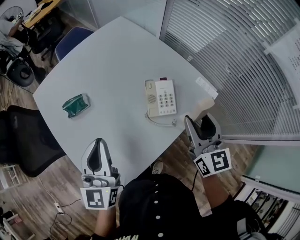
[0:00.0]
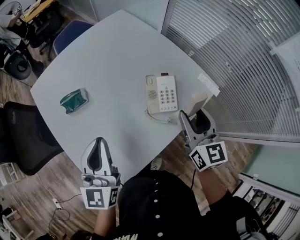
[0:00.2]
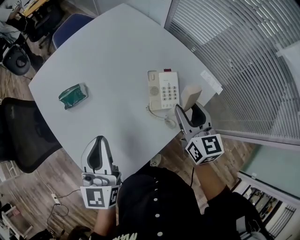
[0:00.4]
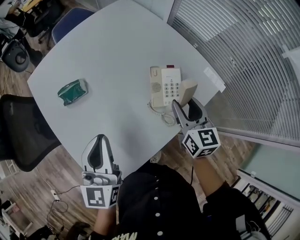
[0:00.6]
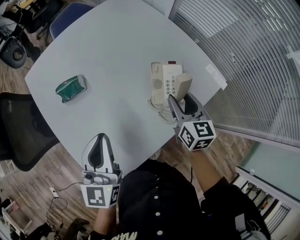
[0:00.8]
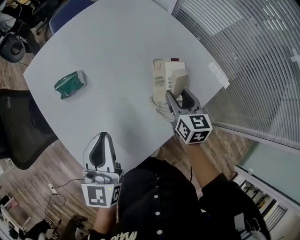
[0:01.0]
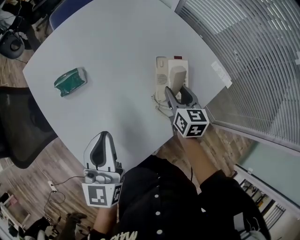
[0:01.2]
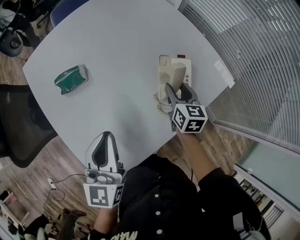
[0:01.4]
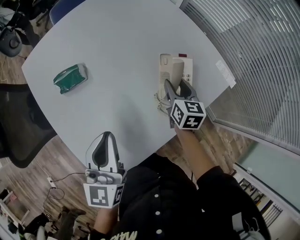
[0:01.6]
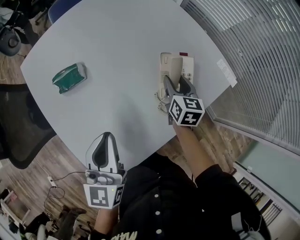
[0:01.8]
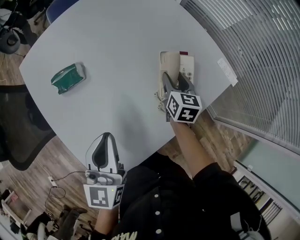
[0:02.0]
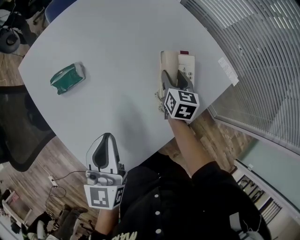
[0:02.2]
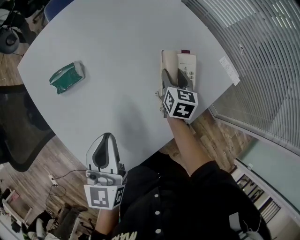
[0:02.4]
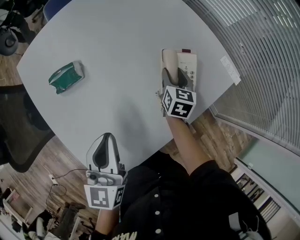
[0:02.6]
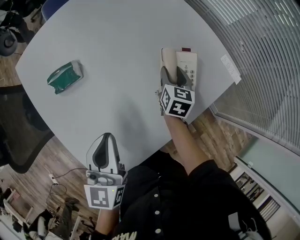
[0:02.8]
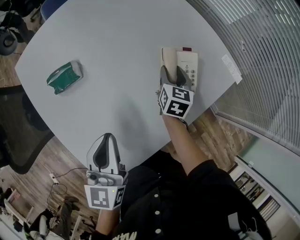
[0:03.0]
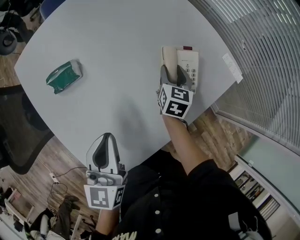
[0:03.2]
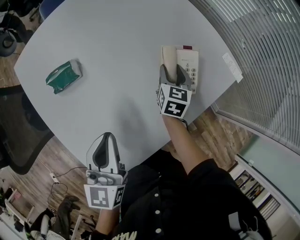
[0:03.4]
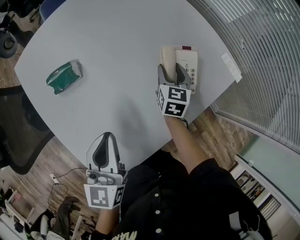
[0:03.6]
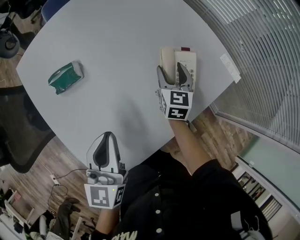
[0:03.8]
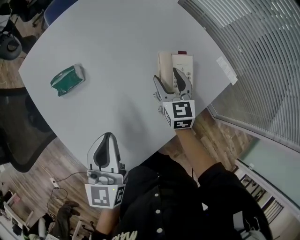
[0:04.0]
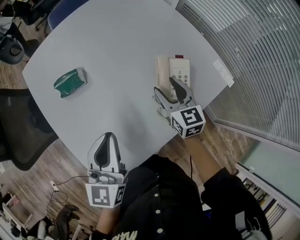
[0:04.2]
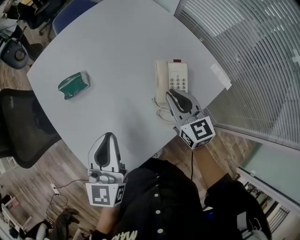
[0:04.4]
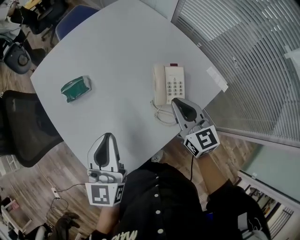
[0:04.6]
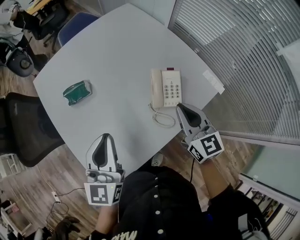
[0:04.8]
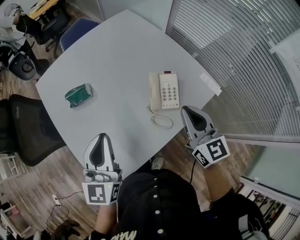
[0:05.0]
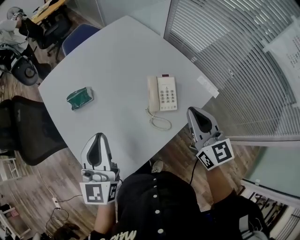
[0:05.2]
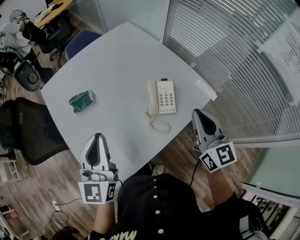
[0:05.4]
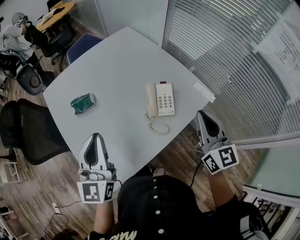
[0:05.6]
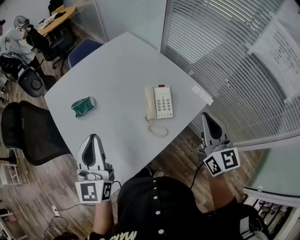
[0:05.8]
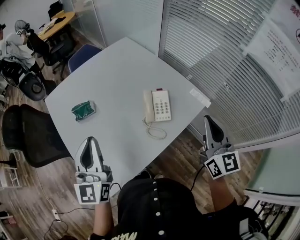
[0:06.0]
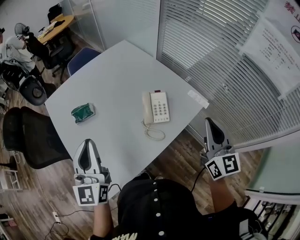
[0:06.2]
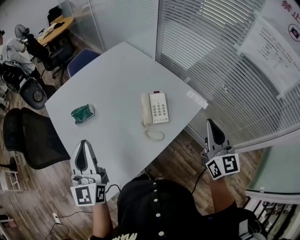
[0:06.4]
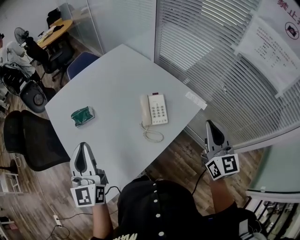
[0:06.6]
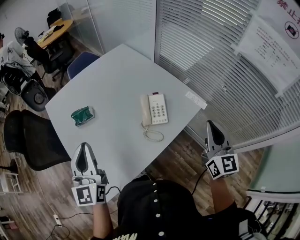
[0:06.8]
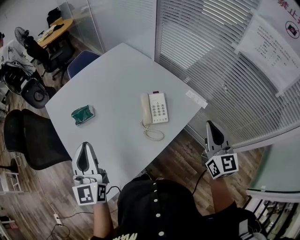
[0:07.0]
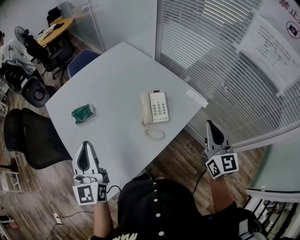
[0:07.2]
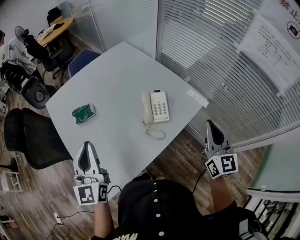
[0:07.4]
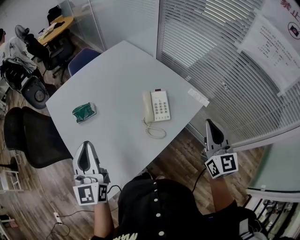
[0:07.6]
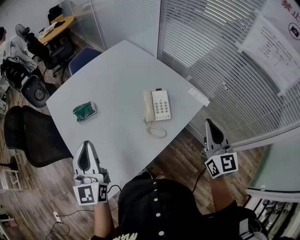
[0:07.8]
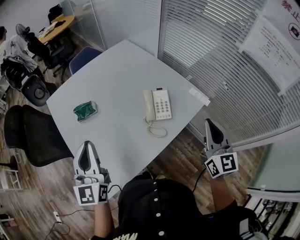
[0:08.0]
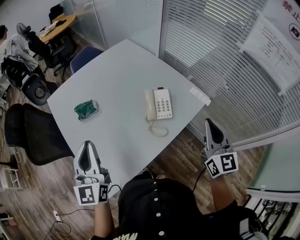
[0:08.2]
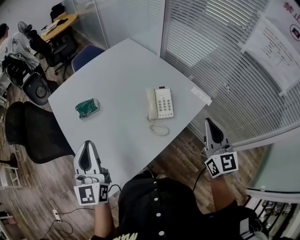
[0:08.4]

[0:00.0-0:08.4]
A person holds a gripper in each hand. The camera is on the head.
0:00.0 to 0:01.4: The right gripper heads downward and forward, covering some 25 cm, and rotates about 30 degrees. The left gripper heads downward, covering roughly 10 cm.
0:01.4 to 0:02.8: The right gripper moves downward and forward, roughly 10 cm.
0:02.8 to 0:04.2: The right gripper goes about 10 cm upward and backward, and turns by approximately 30 degrees.
0:04.2 to 0:05.6: The left gripper heads upward and backward, covering approximately 15 cm. The right gripper is displaced upward, backward and to the right by about 30 cm, turns by about 20 degrees, and closes its fingers.
0:05.6 to 0:07.0: The right gripper is displaced to the right and backward by approximately 10 cm.
0:07.0 to 0:08.4: The grippers move only a little.

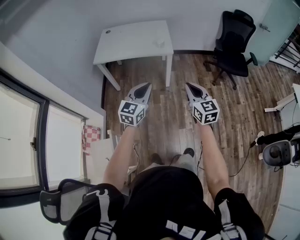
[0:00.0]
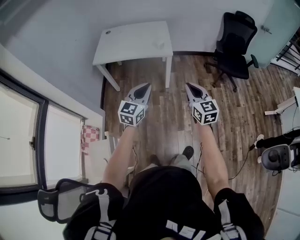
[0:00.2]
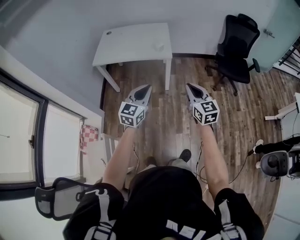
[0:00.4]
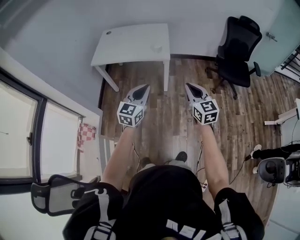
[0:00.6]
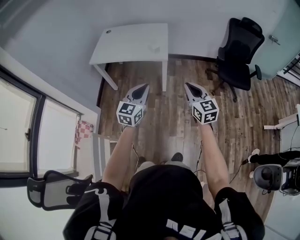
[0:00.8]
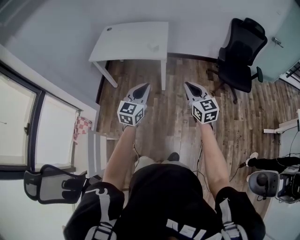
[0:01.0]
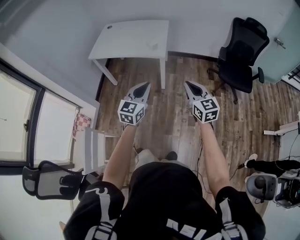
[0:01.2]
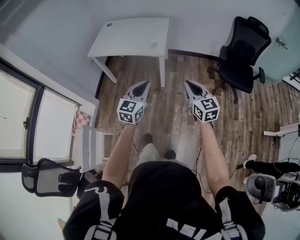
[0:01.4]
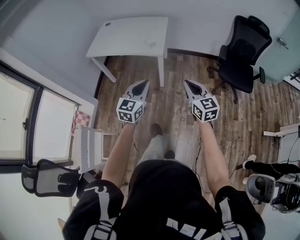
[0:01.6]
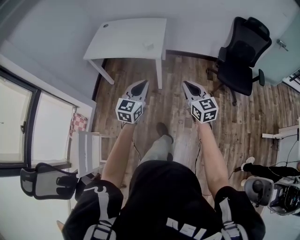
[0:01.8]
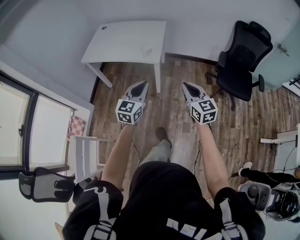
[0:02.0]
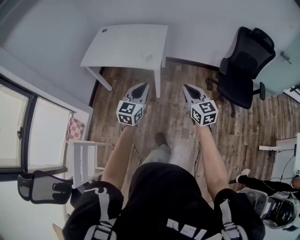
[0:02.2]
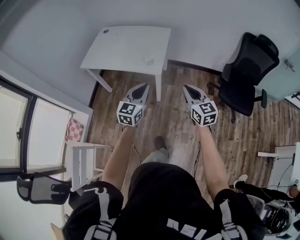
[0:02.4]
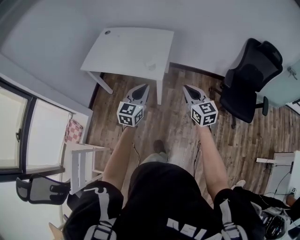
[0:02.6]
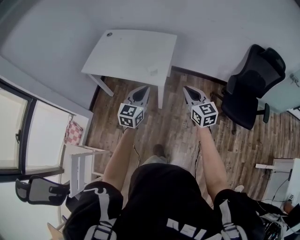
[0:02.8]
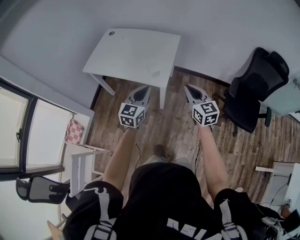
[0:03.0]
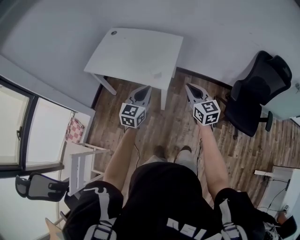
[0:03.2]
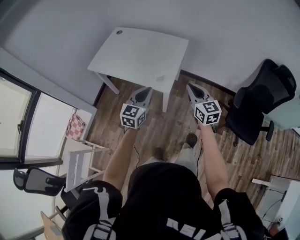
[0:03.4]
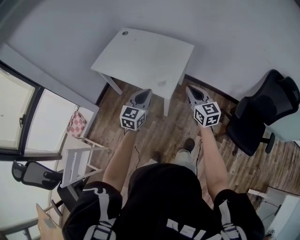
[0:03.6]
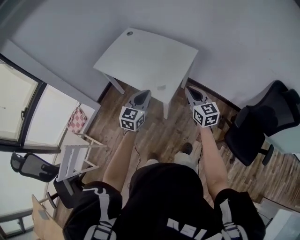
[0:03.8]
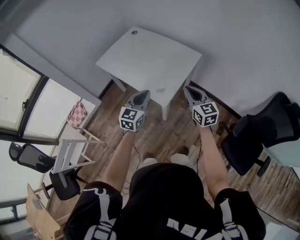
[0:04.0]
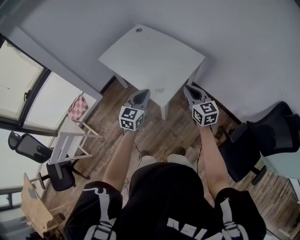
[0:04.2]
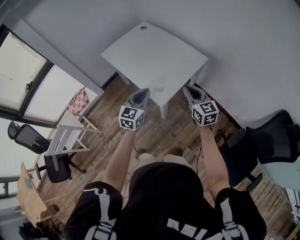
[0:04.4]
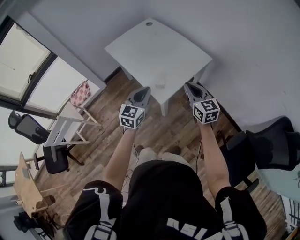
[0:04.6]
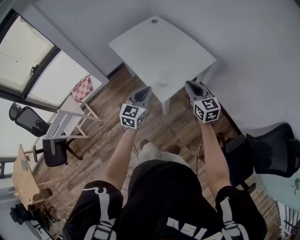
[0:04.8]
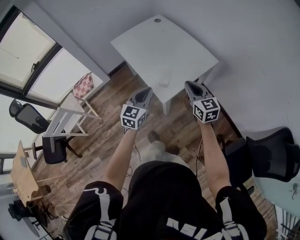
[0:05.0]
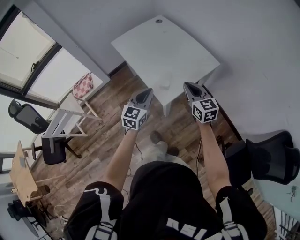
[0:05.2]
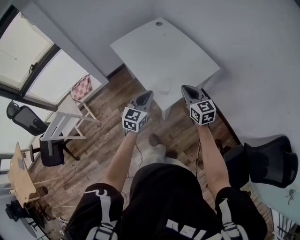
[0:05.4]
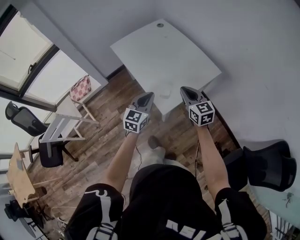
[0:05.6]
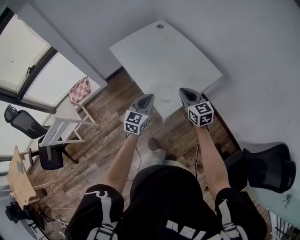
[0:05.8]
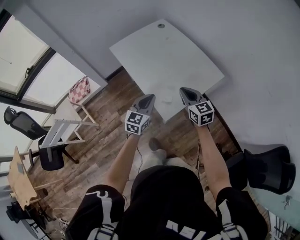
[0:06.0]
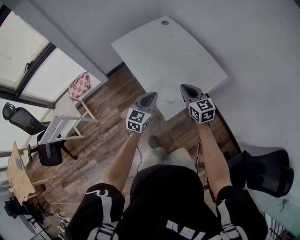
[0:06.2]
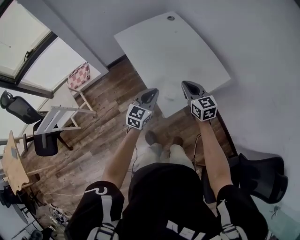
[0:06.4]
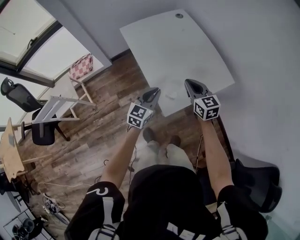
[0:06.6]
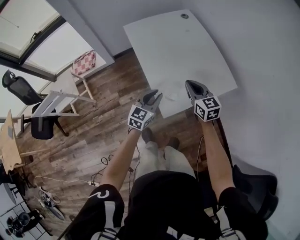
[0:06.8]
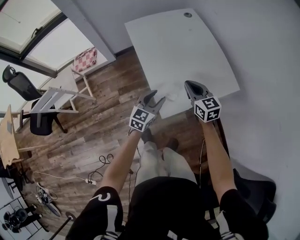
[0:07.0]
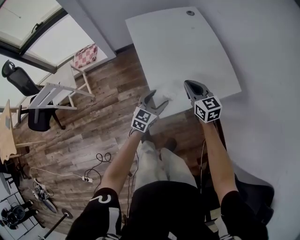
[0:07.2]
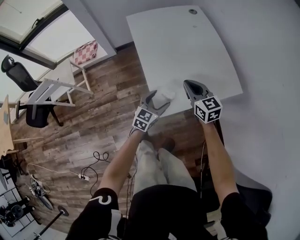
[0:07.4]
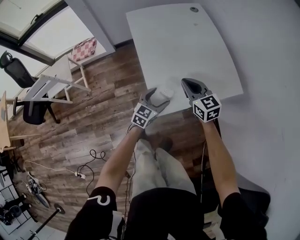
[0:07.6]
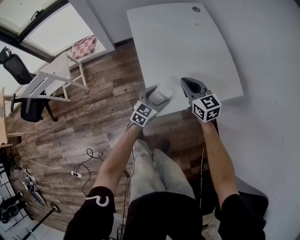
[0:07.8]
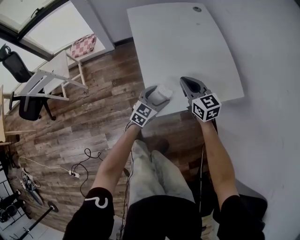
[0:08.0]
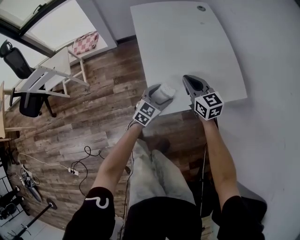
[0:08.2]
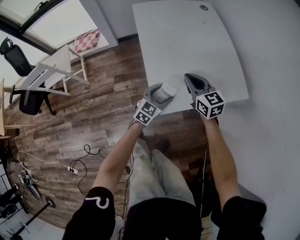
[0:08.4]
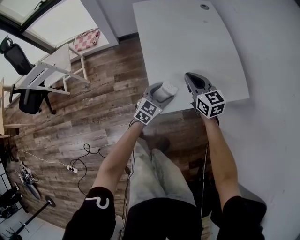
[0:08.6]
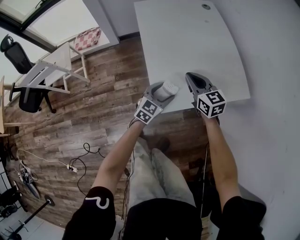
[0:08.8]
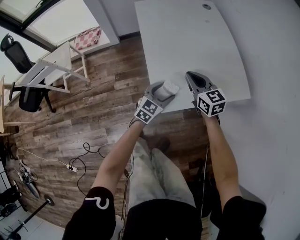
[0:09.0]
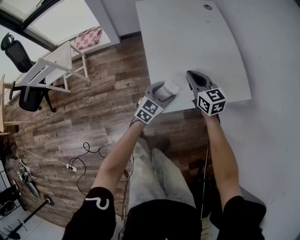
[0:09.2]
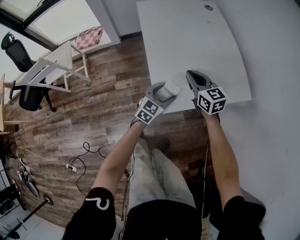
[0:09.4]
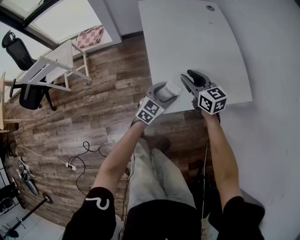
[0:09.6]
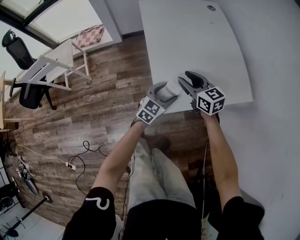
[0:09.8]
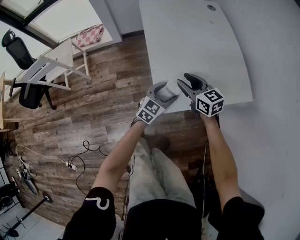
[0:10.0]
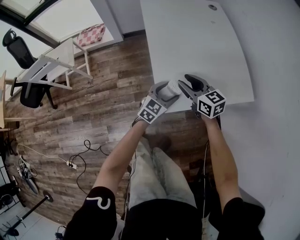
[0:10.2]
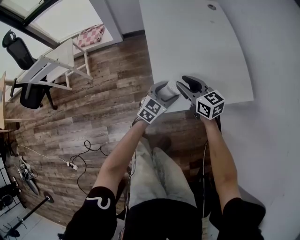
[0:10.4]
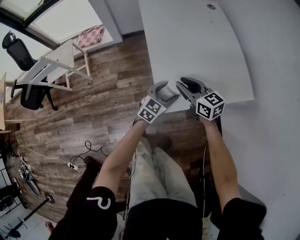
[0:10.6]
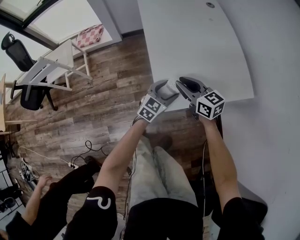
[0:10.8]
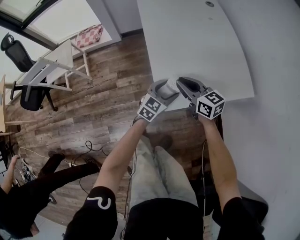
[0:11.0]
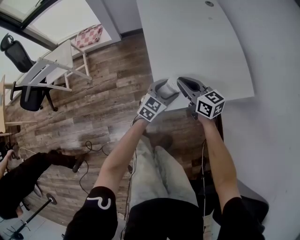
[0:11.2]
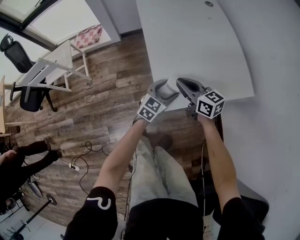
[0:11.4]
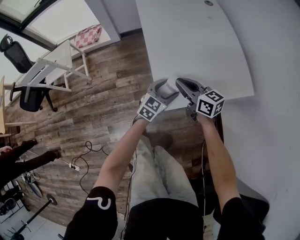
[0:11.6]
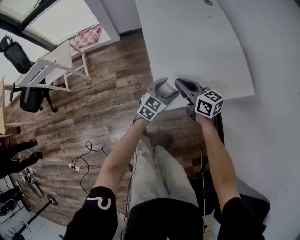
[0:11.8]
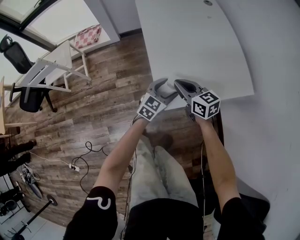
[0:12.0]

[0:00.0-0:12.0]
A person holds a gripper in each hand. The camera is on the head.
0:00.0 to 0:01.6: Both grippers move to the right and forward, approximately 25 cm.
0:01.6 to 0:03.0: The two grippers go some 30 cm forward.
0:03.0 to 0:04.4: The right gripper ends up some 20 cm from where it was, and changes its angle by approximately 30 degrees, while the left gripper ends up roughly 15 cm from where it was, and changes its angle by some 30 degrees.
0:04.4 to 0:06.0: The right gripper is displaced forward, to the left and downward by roughly 15 cm. The left gripper moves forward and downward, approximately 10 cm.
0:06.0 to 0:07.6: The left gripper shifts some 20 cm downward, and opens up. Meanwhile the right gripper goes about 15 cm downward and forward, and rotates some 20 degrees.
0:07.6 to 0:09.0: The right gripper moves some 5 cm.
0:09.0 to 0:10.4: The right gripper moves roughly 5 cm, and opens.
0:10.4 to 0:12.0: The right gripper closes.

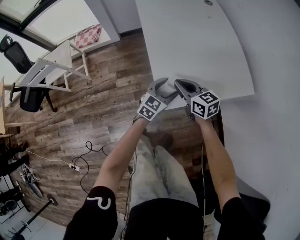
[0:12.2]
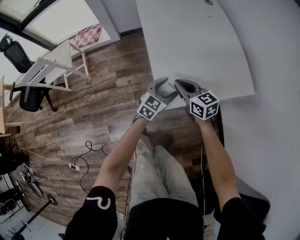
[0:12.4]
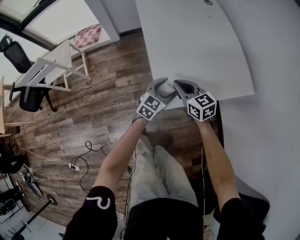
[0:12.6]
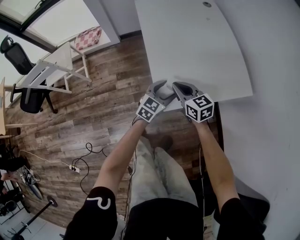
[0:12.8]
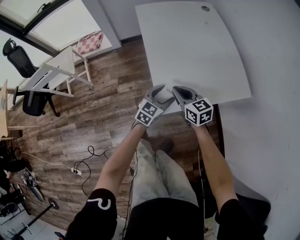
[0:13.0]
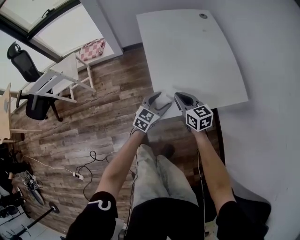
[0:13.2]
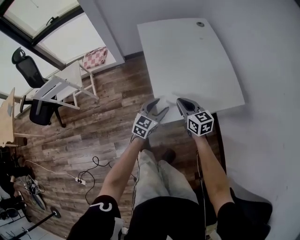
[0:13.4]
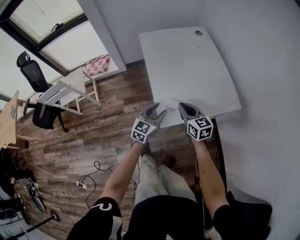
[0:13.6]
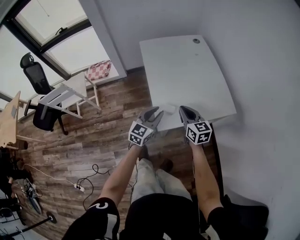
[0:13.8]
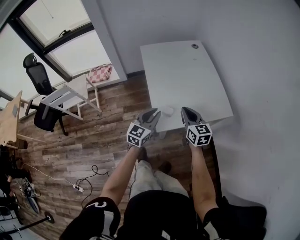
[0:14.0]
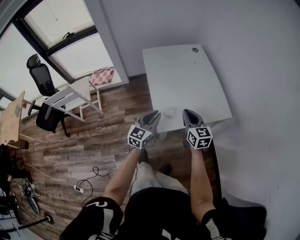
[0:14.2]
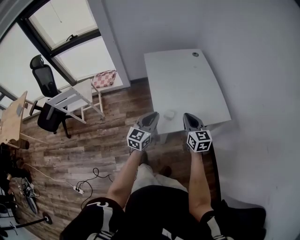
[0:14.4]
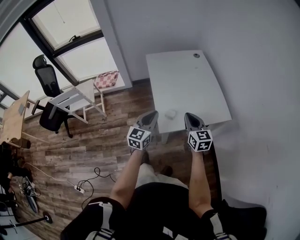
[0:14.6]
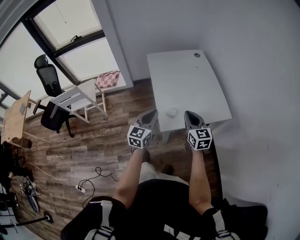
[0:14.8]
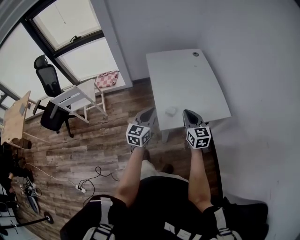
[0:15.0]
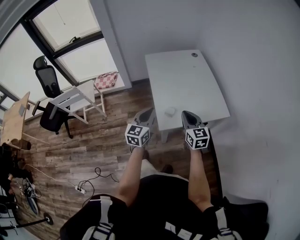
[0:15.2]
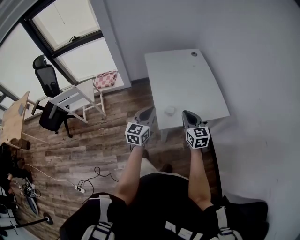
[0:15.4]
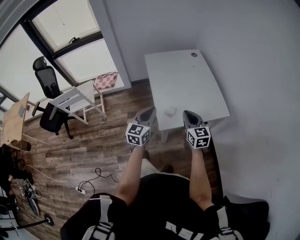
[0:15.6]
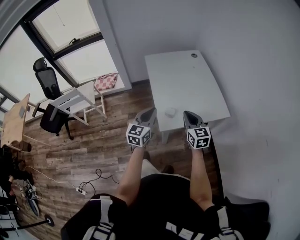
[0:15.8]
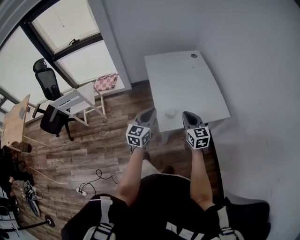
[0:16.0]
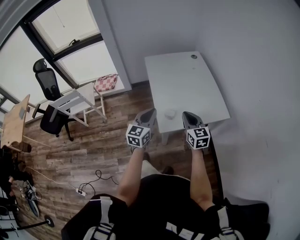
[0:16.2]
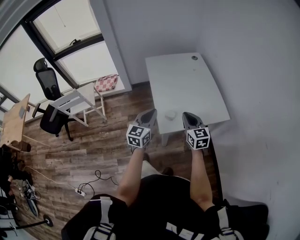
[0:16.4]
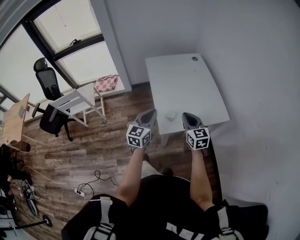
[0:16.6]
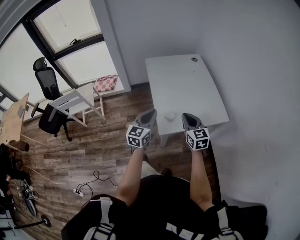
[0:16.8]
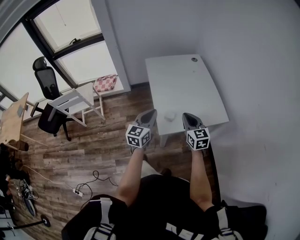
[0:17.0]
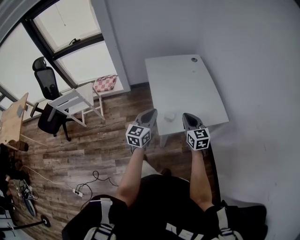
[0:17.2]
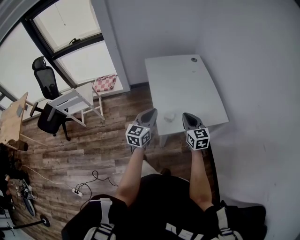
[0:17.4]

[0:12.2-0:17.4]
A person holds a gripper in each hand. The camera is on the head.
0:12.2 to 0:14.0: The right gripper moves upward and to the right, approximately 20 cm, and rotates some 20 degrees, while the left gripper is displaced upward by roughly 20 cm, and closes.
0:14.0 to 0:15.6: The left gripper travels upward by roughly 10 cm; the right gripper moves backward and upward, some 10 cm.
0:15.6 to 0:17.4: The grippers make only small movements.
